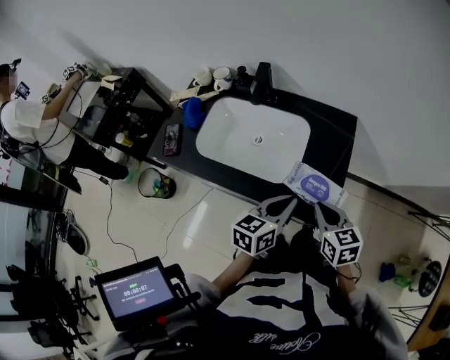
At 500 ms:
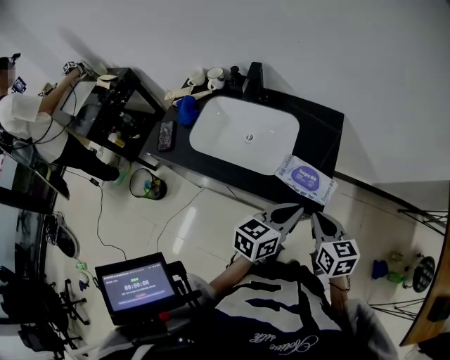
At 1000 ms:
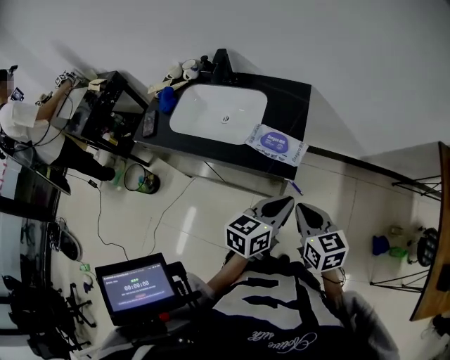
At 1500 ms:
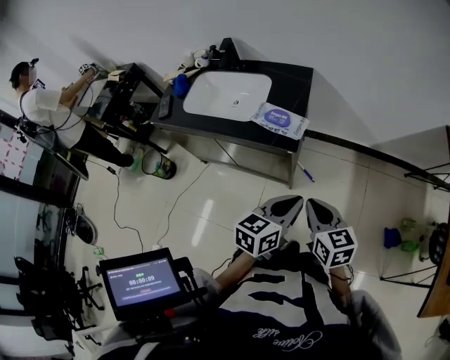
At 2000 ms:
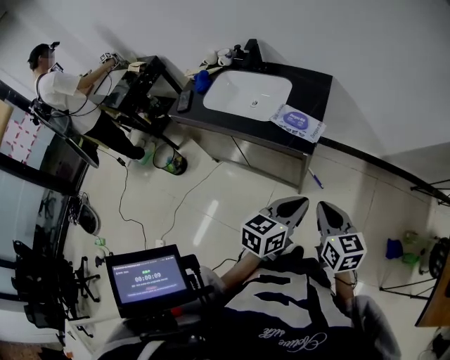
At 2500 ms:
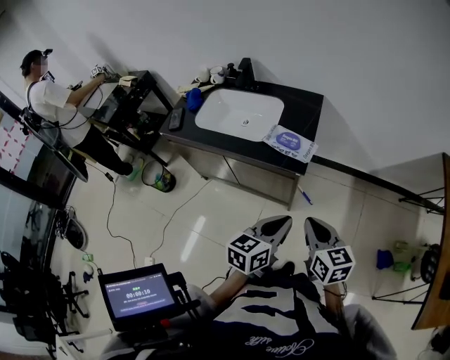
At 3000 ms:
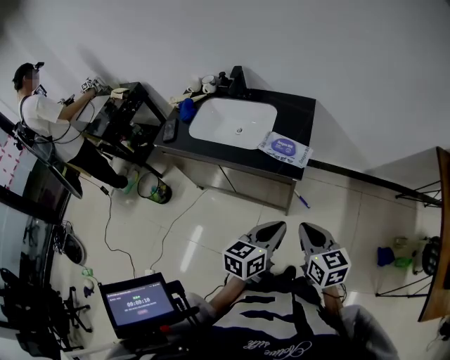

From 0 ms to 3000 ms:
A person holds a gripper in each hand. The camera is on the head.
From 0 ms to 1500 ms: Both grippers travel together backward and to the right, some 30 cm.
From 1500 ms to 3000 ms: The two grippers go about 10 cm to the left.

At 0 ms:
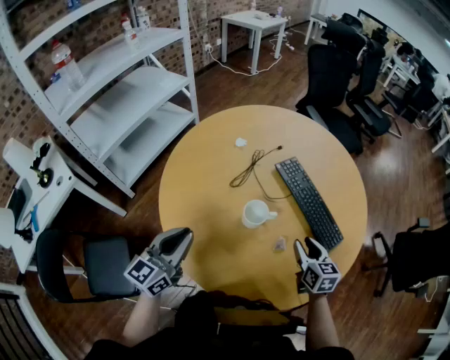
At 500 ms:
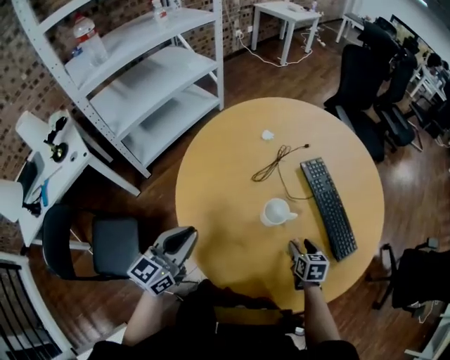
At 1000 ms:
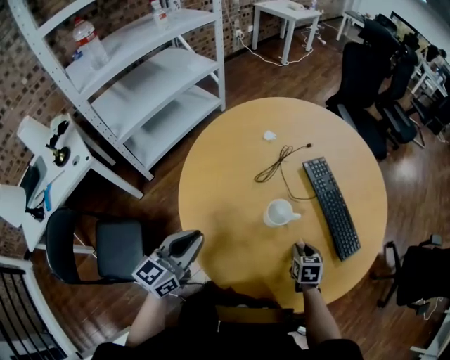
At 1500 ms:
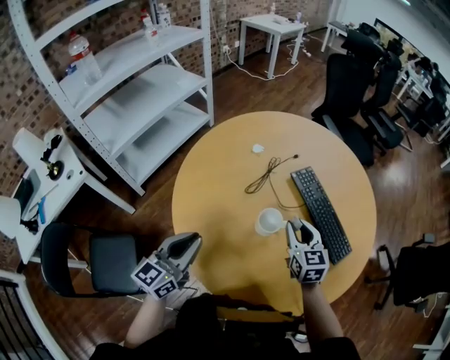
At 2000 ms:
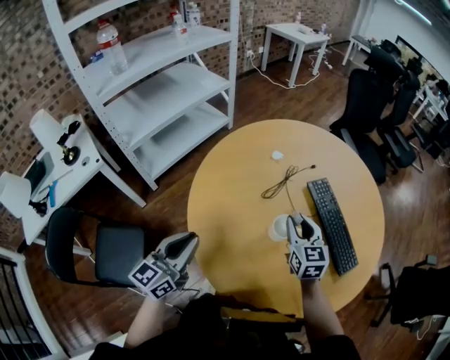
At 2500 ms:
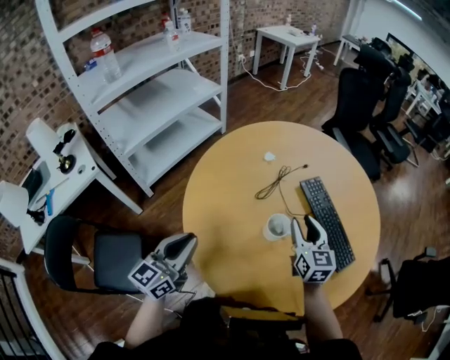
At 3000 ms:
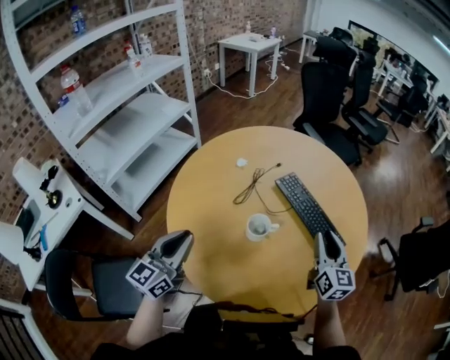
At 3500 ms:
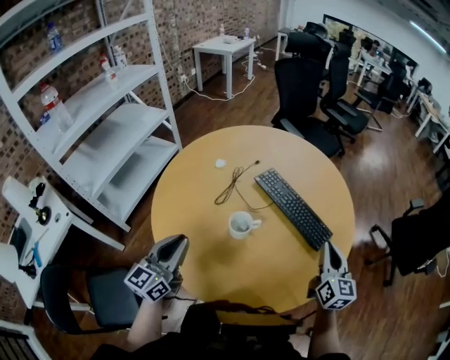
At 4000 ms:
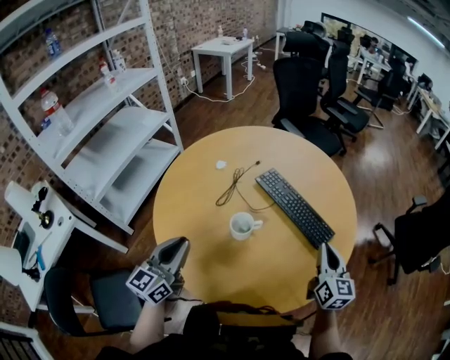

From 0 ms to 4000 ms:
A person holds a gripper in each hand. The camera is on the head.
From 0 ms to 2000 ms: The left gripper is displaced to the left by about 5 cm; the right gripper moves to the left, forward and upward, approximately 20 cm, rotates approximately 20 degrees, and opens, then closes again.
From 2000 ms to 4000 ms: The left gripper shifts about 10 cm to the right, while the right gripper travels to the right and backward by about 30 cm, swivels approximately 30 degrees, and closes.

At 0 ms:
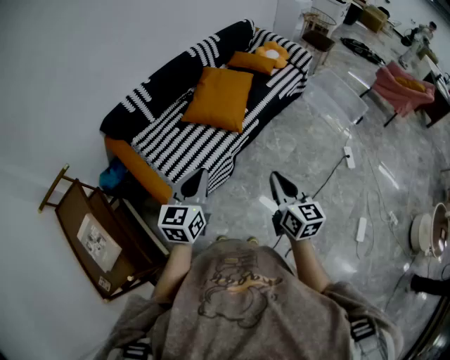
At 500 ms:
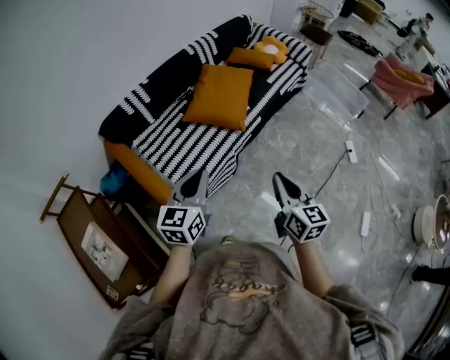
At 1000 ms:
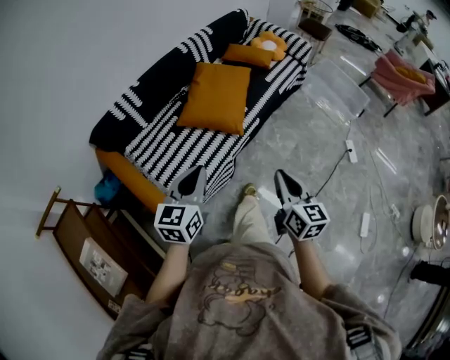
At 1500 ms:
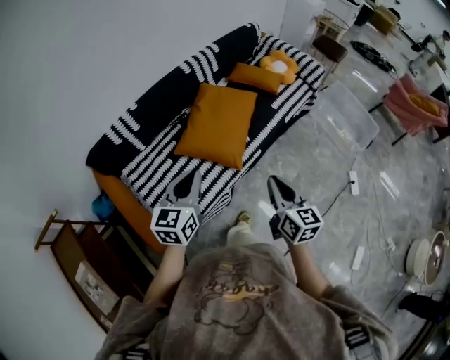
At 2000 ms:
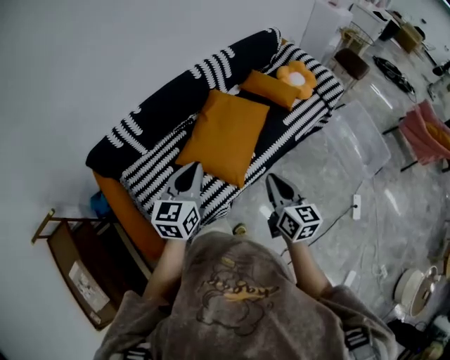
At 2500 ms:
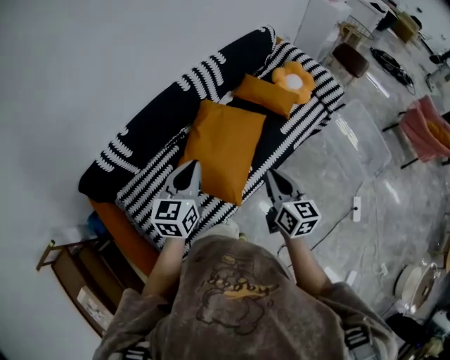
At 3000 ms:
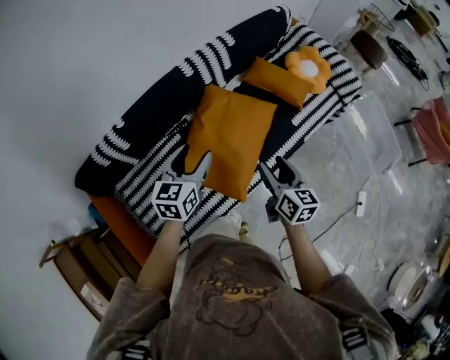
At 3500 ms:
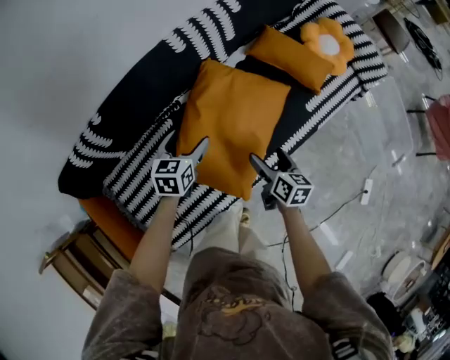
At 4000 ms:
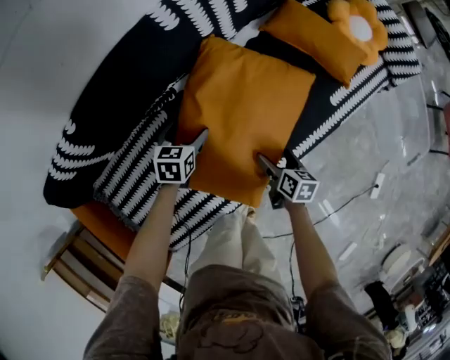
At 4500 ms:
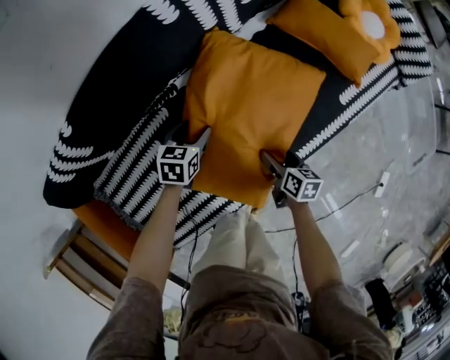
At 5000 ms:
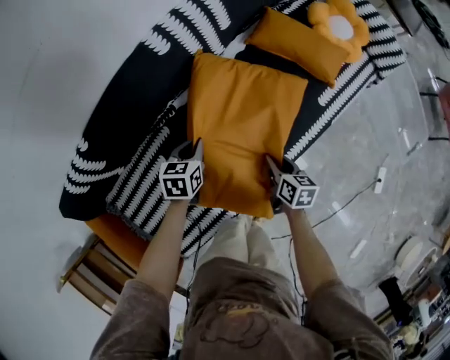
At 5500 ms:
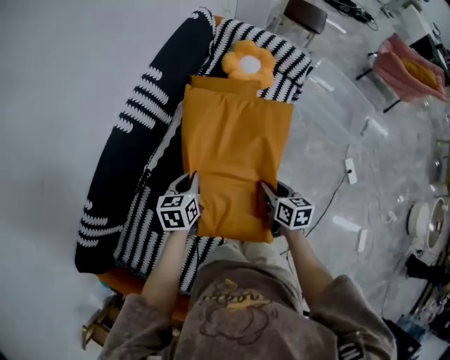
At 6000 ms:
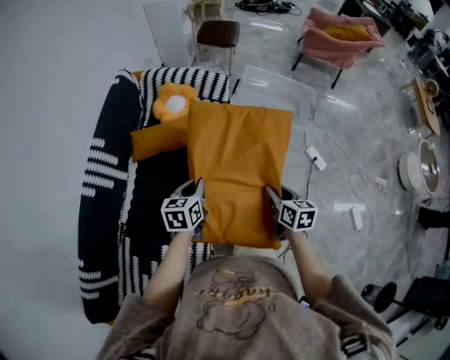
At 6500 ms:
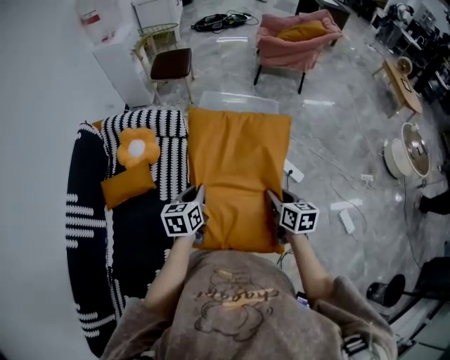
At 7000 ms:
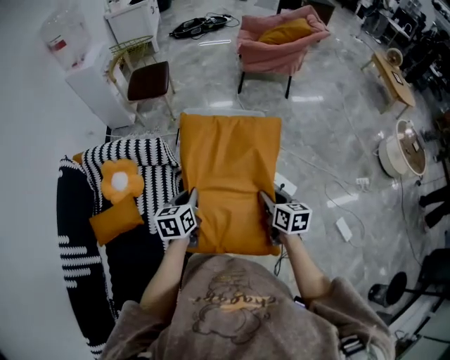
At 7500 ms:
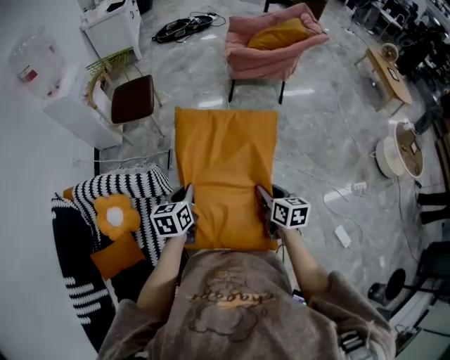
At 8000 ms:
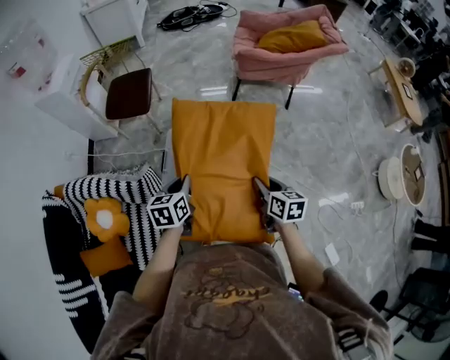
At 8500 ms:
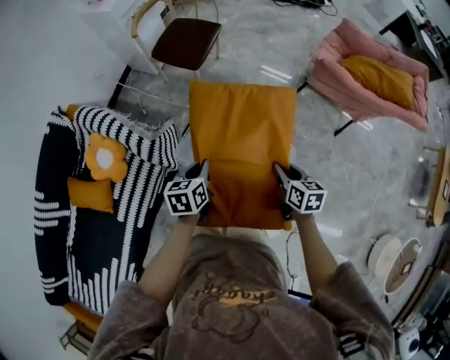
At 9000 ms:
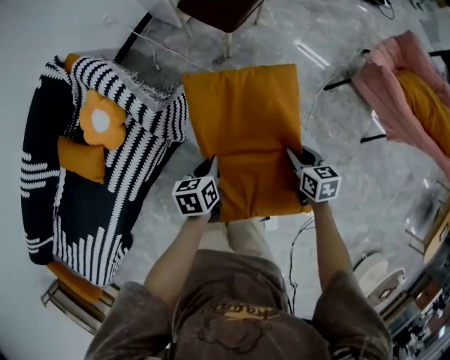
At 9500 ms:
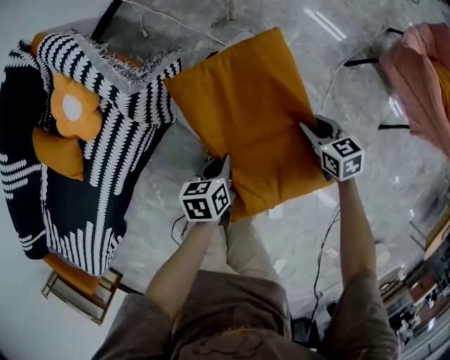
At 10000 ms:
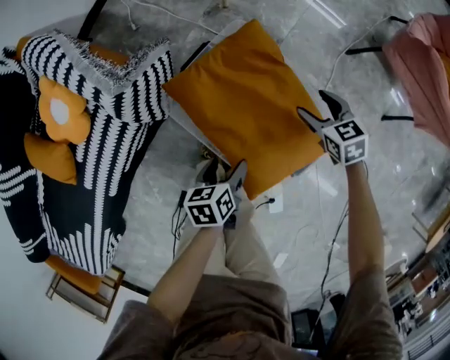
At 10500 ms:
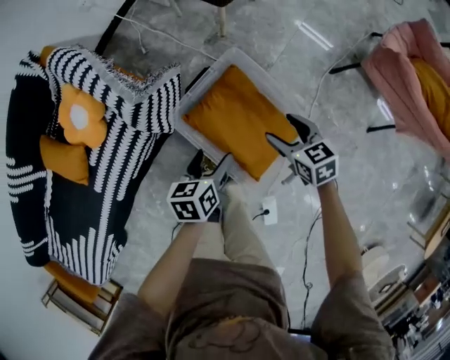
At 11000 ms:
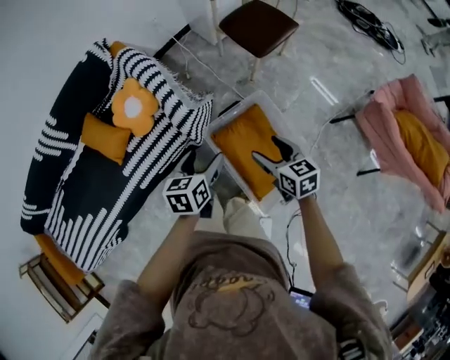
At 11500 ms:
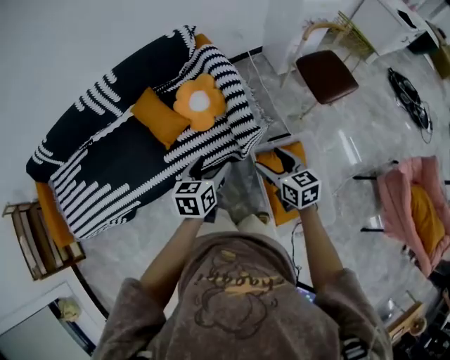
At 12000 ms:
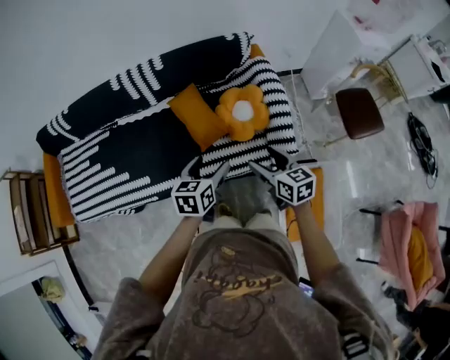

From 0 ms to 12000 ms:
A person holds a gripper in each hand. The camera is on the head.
From 0 ms to 2000 ms: The two grippers travel together, forward, roughly 50 cm.
From 2000 ms to 4000 ms: Both grippers move downward and forward, roughly 60 cm. The right gripper tips its fingers downward by approximately 30 degrees, and opens up, while the left gripper points its fingers roughly 40 degrees further downward, and opens up.
From 4000 ms to 6000 ms: The two grippers travel together, roughly 50 cm. The right gripper changes its angle by about 40 degrees, and closes; the left gripper rotates some 40 degrees, and closes up.
From 6000 ms to 8000 ms: Both grippers are carried forward and to the right, some 70 cm.
From 8000 ms to 10000 ms: Both grippers travel together downward, some 40 cm. The left gripper rolls counterclockwise, seen from behind, by about 50 degrees, and opens up; the right gripper changes its angle by roughly 70 degrees, and opens its fingers.
From 10000 ms to 12000 ms: The two grippers travel together, about 60 cm. The right gripper rotates some 40 degrees, while the left gripper swivels approximately 50 degrees.

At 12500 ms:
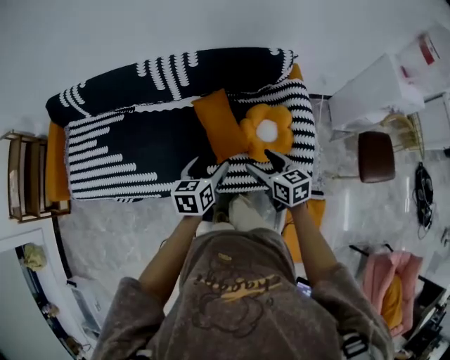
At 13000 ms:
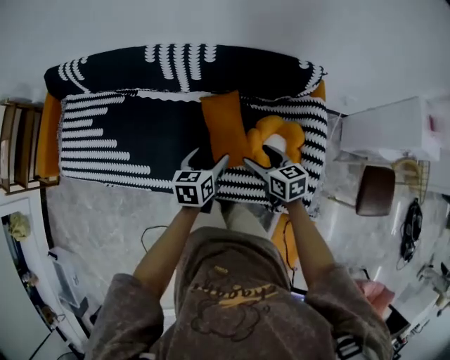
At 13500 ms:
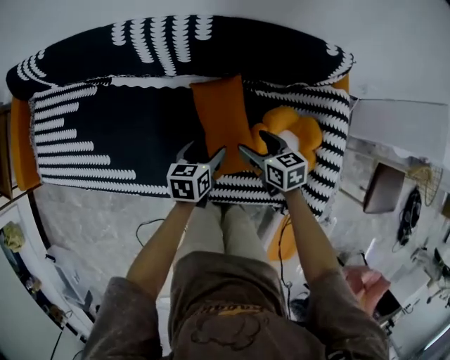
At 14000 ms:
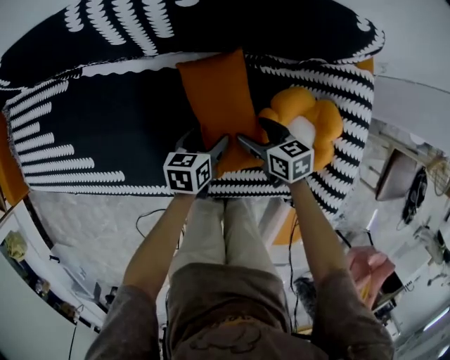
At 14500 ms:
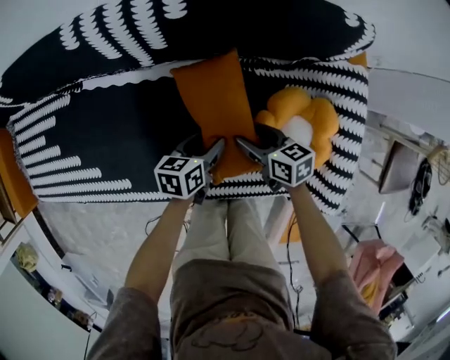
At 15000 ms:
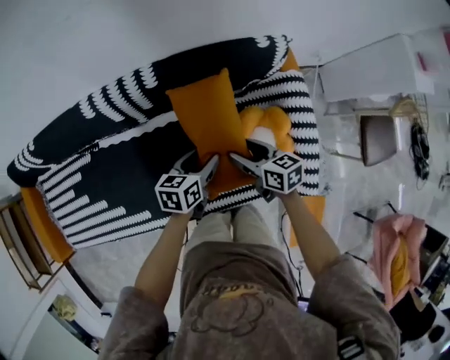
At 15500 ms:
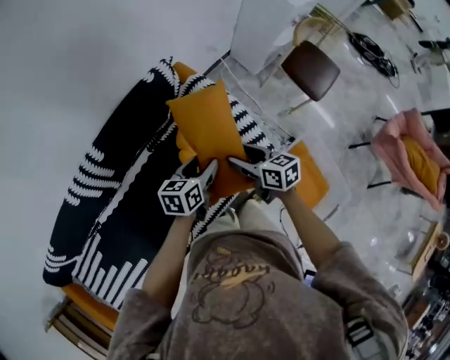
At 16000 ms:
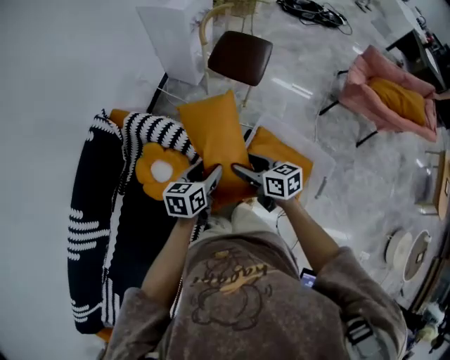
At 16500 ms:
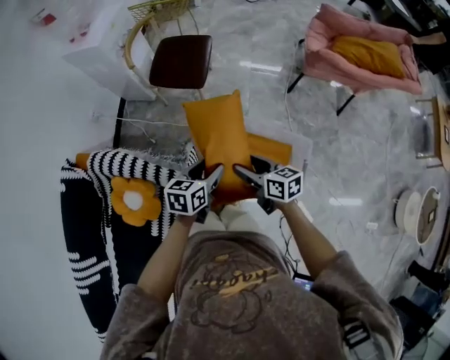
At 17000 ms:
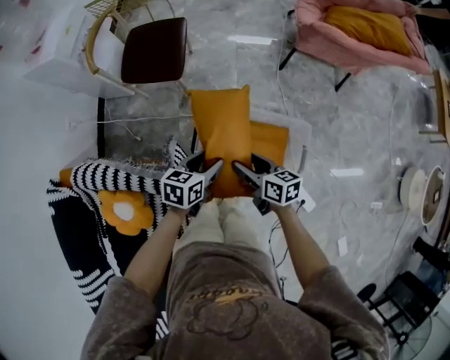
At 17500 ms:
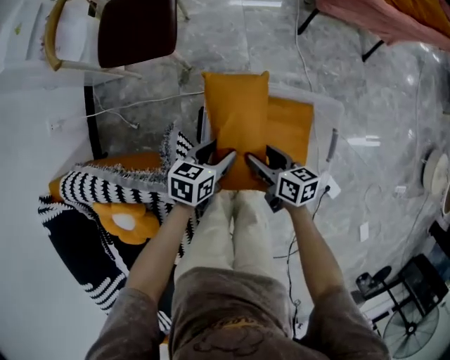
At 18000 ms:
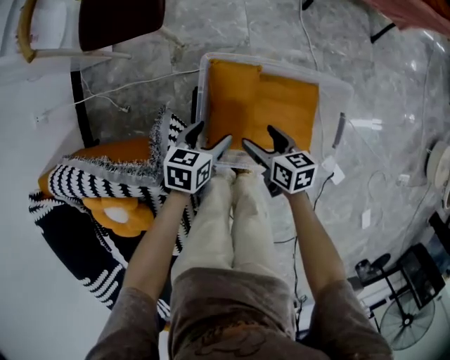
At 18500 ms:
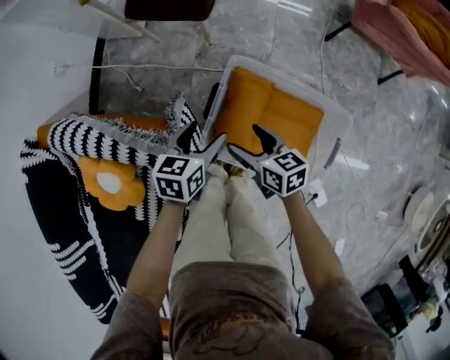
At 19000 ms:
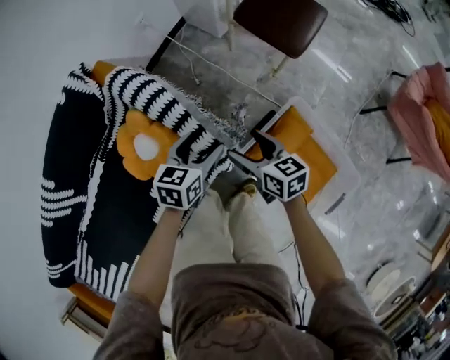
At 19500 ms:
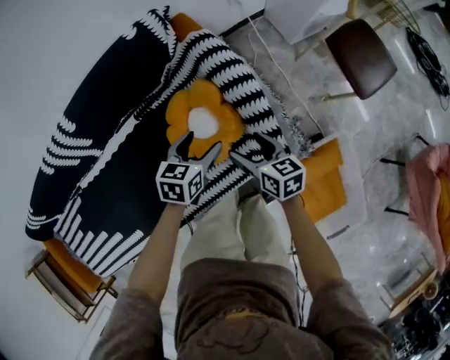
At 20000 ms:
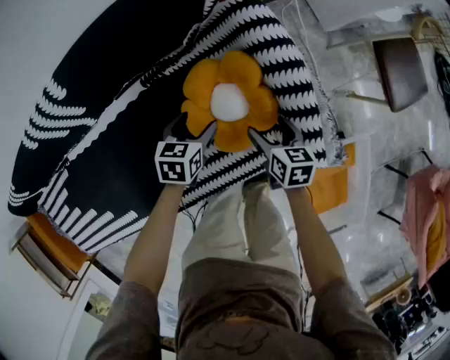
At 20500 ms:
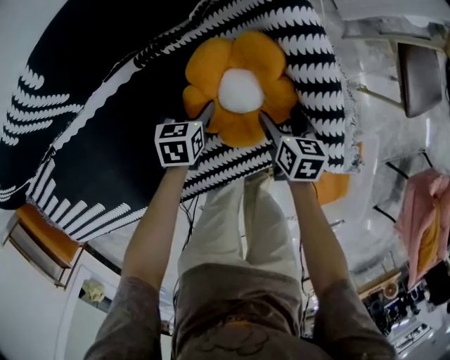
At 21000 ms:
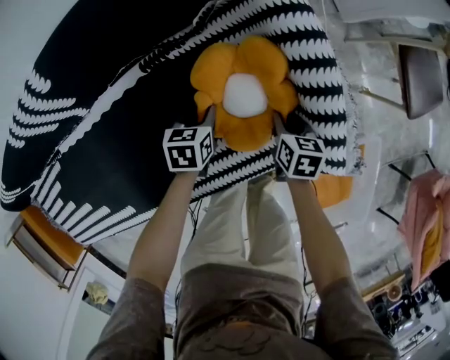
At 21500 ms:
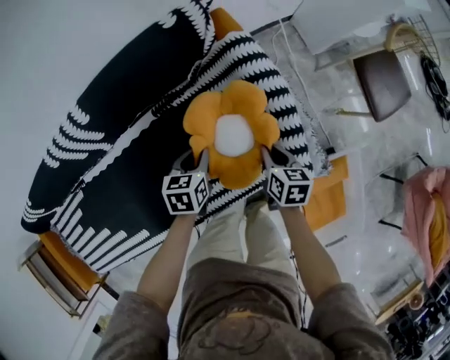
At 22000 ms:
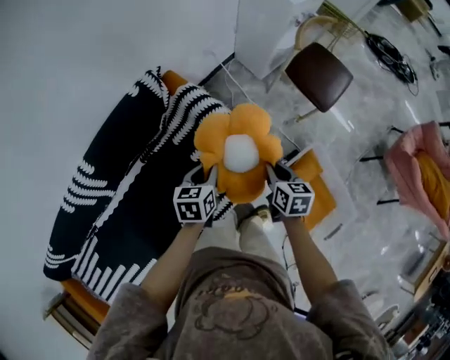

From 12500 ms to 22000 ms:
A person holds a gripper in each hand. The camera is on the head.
From 12500 ms to 14500 ms: Both grippers move downward and forward, approximately 40 cm. The left gripper rotates some 20 degrees. Meanwhile the right gripper rotates about 20 degrees.
From 14500 ms to 16500 ms: The pair of grippers is taken some 80 cm. The left gripper swivels some 80 degrees, while the right gripper changes its angle by approximately 90 degrees.
From 16500 ms to 18000 ms: The two grippers go some 35 cm downward. The left gripper turns by some 20 degrees, while the right gripper turns by approximately 20 degrees.
From 18000 ms to 20000 ms: The pair of grippers is taken roughly 60 cm. The left gripper turns by about 70 degrees; the right gripper rotates around the line of its fingers by about 50 degrees, counterclockwise from behind.
From 20000 ms to 22000 ms: The two grippers go some 25 cm upward and to the right. The right gripper swivels about 20 degrees, and closes its fingers. The left gripper closes.
